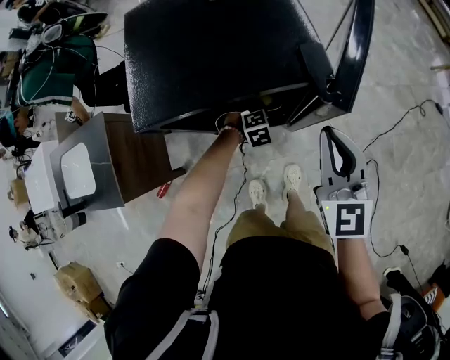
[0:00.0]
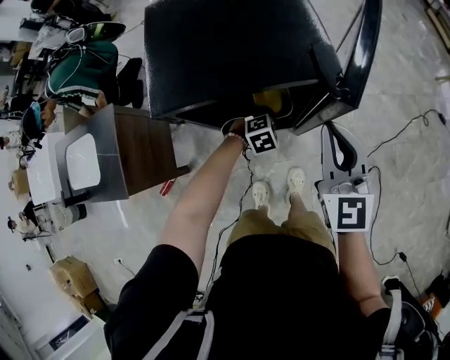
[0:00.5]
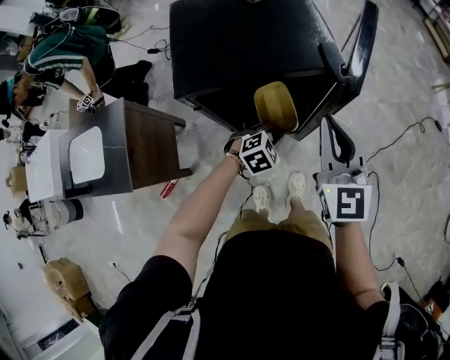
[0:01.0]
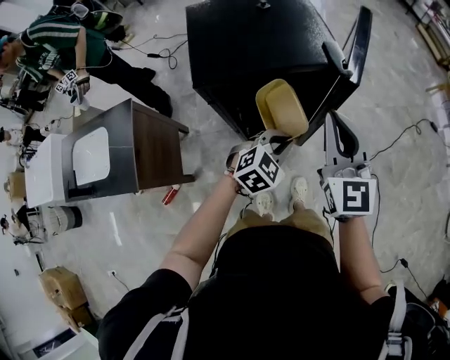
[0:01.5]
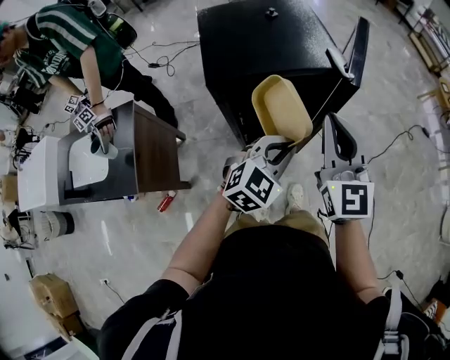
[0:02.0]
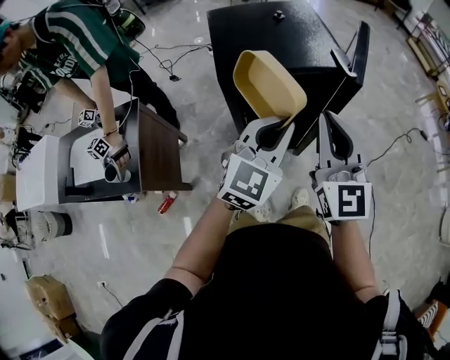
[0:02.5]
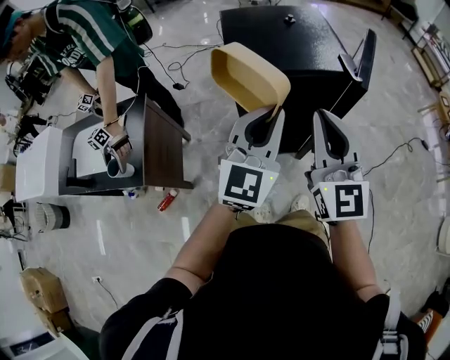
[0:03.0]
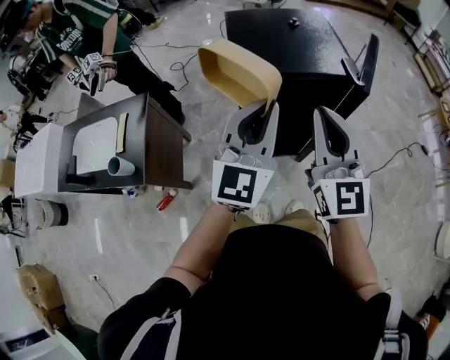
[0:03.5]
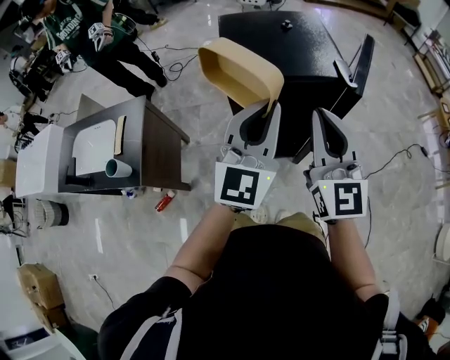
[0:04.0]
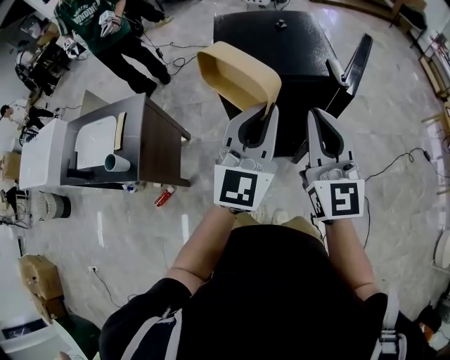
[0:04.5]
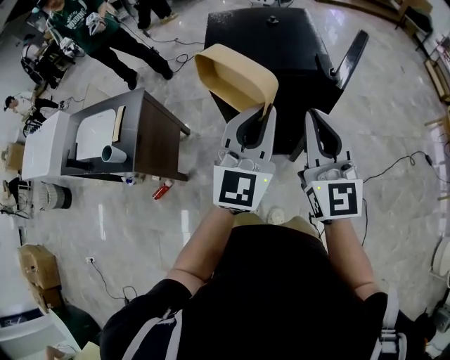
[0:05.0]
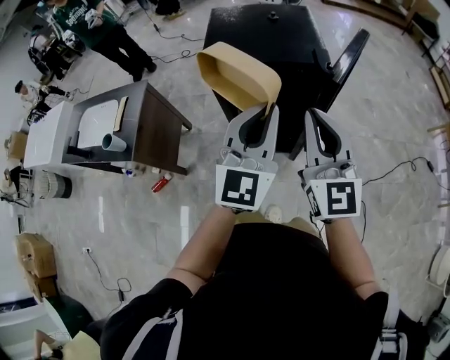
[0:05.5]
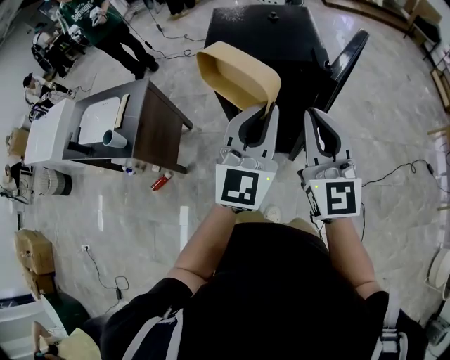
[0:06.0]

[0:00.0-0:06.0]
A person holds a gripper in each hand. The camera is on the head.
0:00.0 to 0:02.0: The right gripper shifts roughly 20 cm backward, upward and to the left. Meanwhile the left gripper goes about 40 cm upward and backward, and tips its fingers upward by approximately 40 degrees.
0:02.0 to 0:04.0: The right gripper goes some 10 cm upward and to the left. The left gripper goes some 20 cm upward and to the left, and tips its fingers upward by approximately 40 degrees.
0:04.0 to 0:06.0: Both grippers move to the right and backward, some 15 cm.

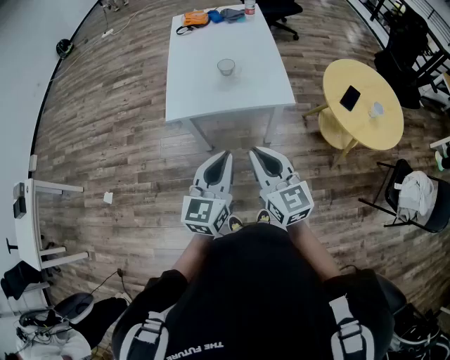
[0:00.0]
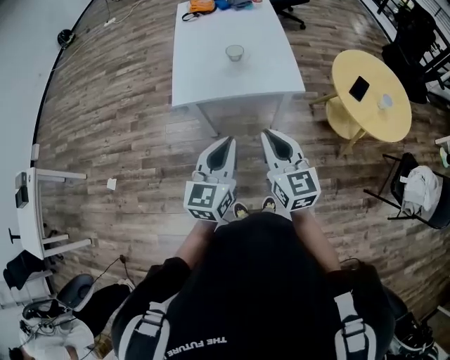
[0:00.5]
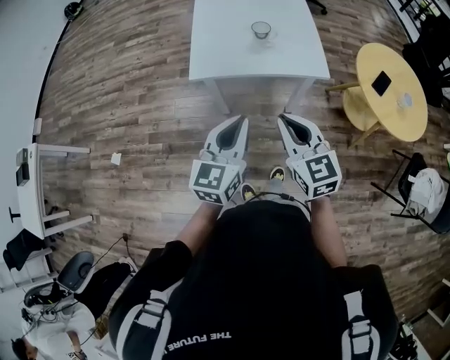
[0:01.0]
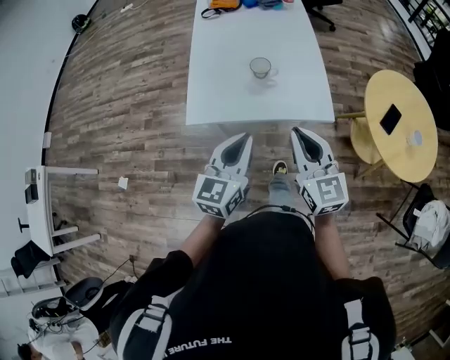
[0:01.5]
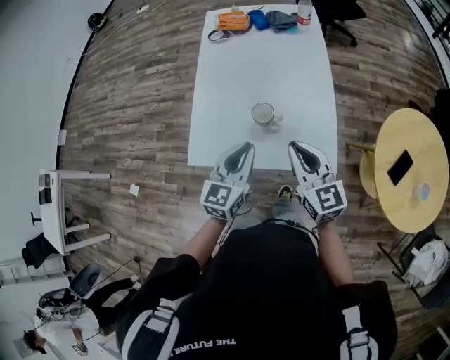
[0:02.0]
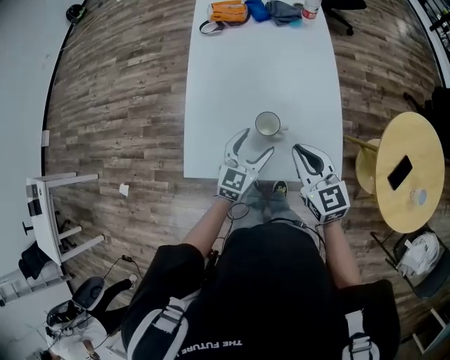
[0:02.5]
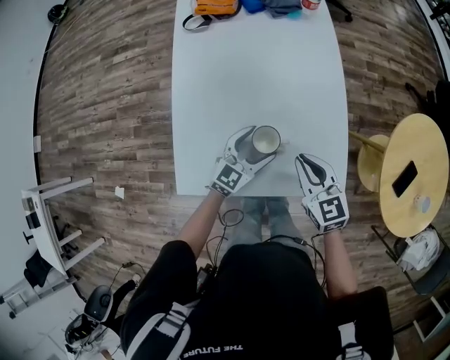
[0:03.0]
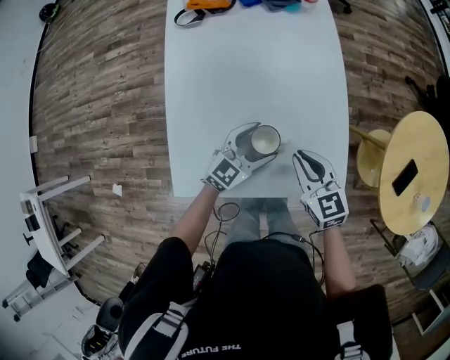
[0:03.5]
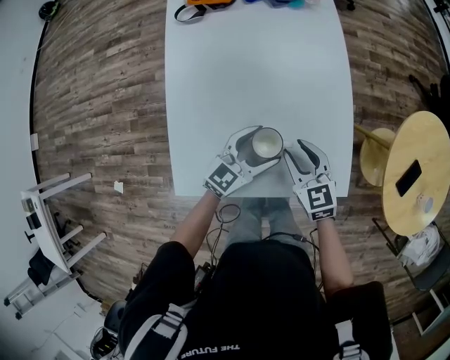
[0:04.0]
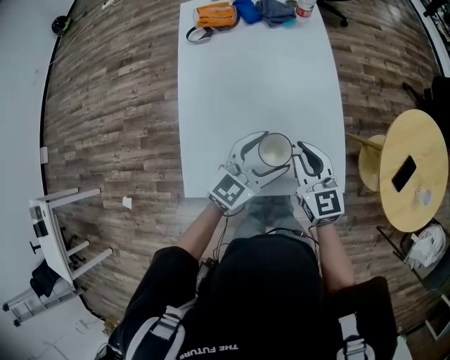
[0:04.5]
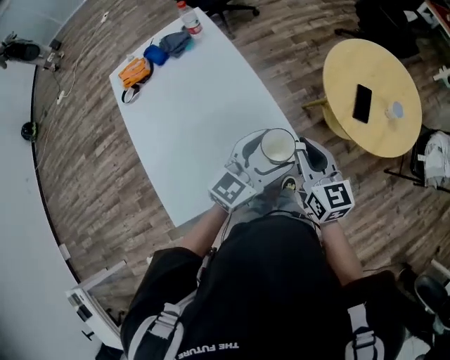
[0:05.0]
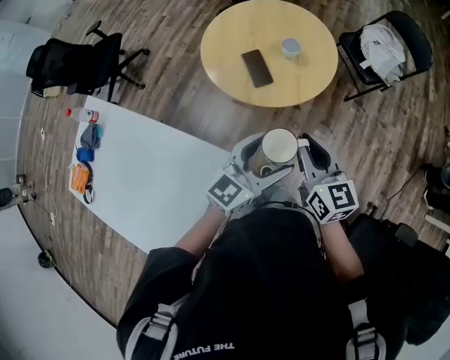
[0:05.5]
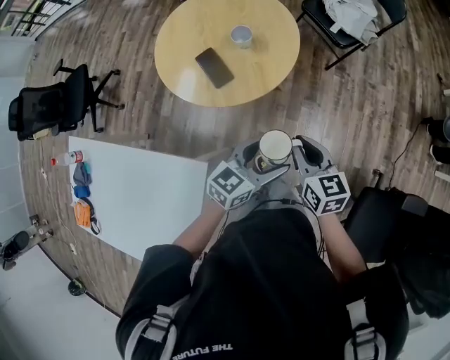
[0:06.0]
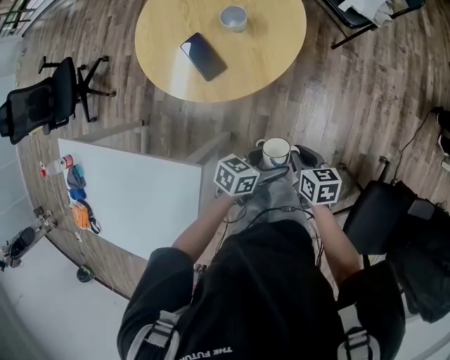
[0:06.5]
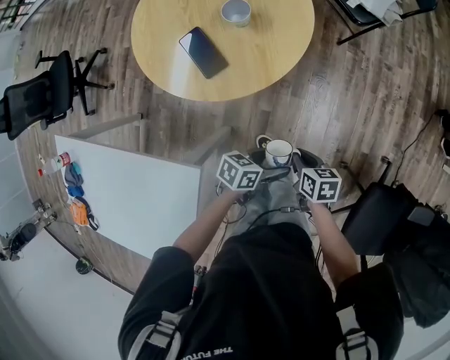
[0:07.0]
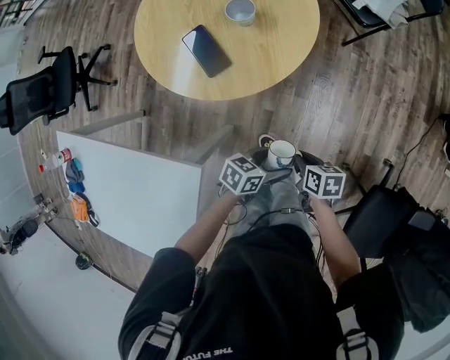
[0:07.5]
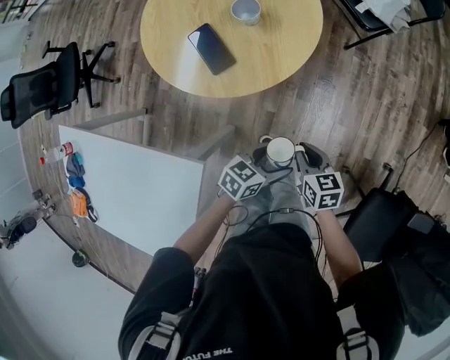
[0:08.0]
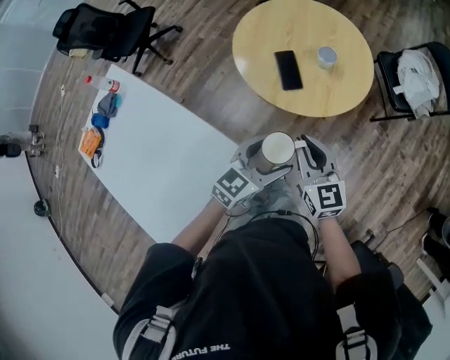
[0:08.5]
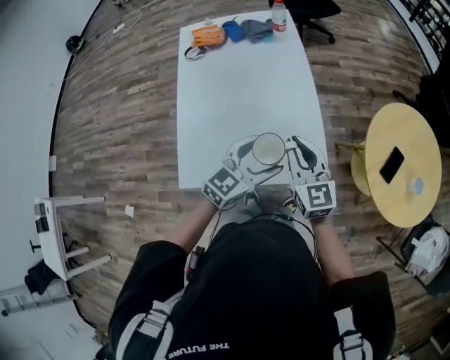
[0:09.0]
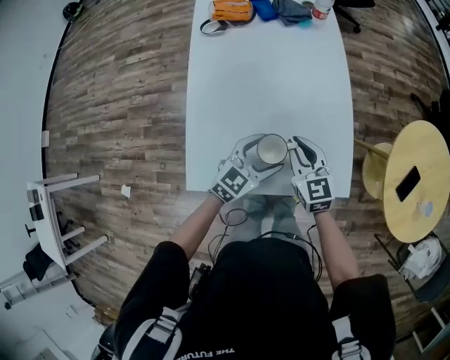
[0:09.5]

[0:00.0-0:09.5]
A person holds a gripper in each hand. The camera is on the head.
0:00.0 to 0:02.0: Both grippers move forward, approximately 35 cm.
0:02.0 to 0:04.0: The grippers both shift downward and forward by approximately 25 cm. The left gripper changes its angle by some 30 degrees, and opens up; the right gripper changes its angle by about 20 degrees, and opens its fingers.
0:04.0 to 0:05.5: The two grippers travel together, about 50 cm. The right gripper changes its angle by about 80 degrees, and closes; the left gripper turns by roughly 60 degrees.
0:05.5 to 0:07.5: Both grippers move downward, about 30 cm. The right gripper points its fingers approximately 40 degrees further downward. Meanwhile the left gripper swivels roughly 60 degrees.
0:07.5 to 0:09.5: Both grippers are carried some 60 cm. The left gripper changes its angle by some 90 degrees. The right gripper rolls counterclockwise, seen from behind, by approximately 90 degrees.

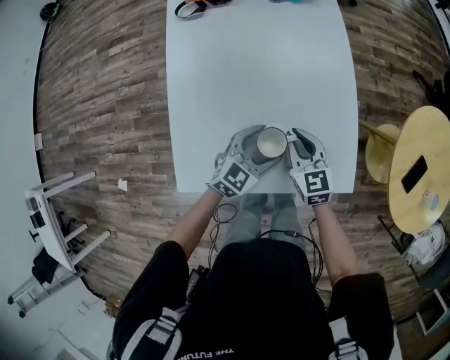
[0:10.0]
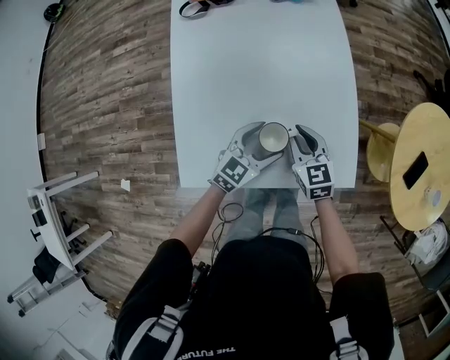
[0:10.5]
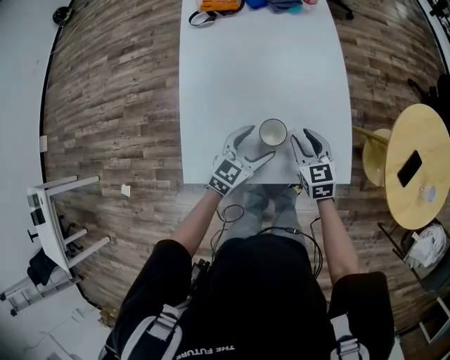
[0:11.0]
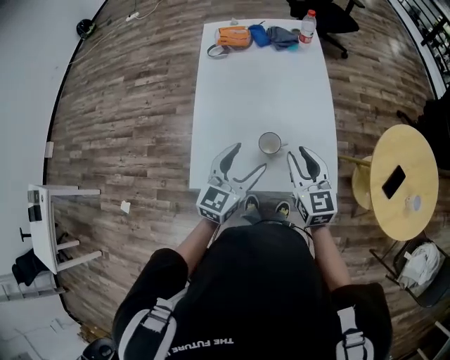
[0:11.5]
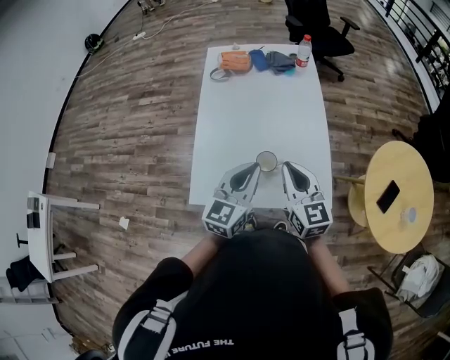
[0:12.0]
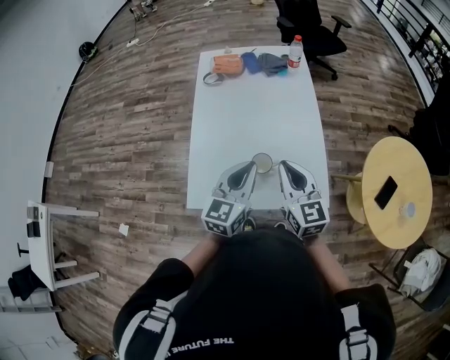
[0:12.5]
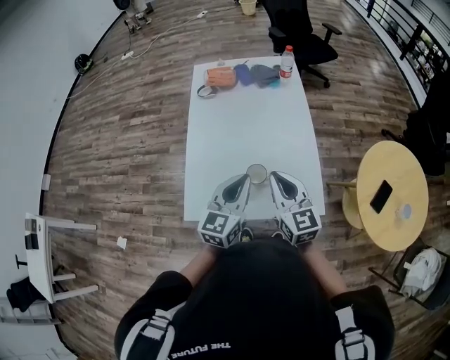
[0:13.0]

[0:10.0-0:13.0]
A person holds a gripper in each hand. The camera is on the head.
0:10.0 to 0:11.5: Both grippers travel together upward and backward, roughly 20 cm. The right gripper opens its fingers, while the left gripper rotates approximately 30 degrees.
0:11.5 to 0:13.0: The right gripper shifts approximately 5 cm upward, and closes its fingers, while the left gripper shifts by about 5 cm, and closes up.

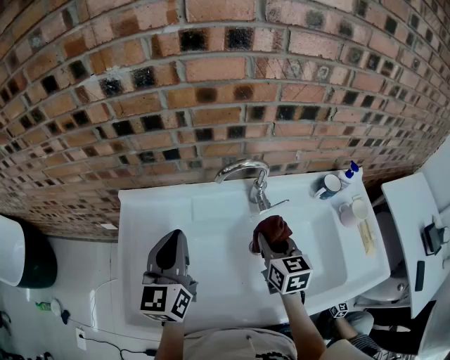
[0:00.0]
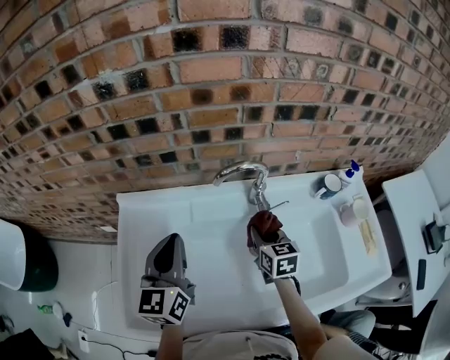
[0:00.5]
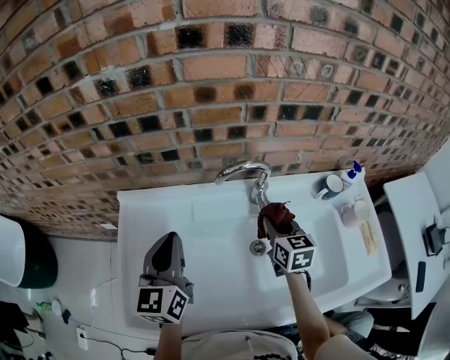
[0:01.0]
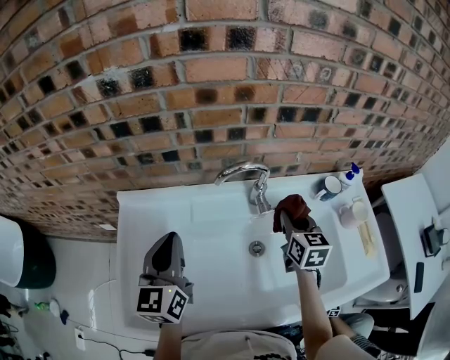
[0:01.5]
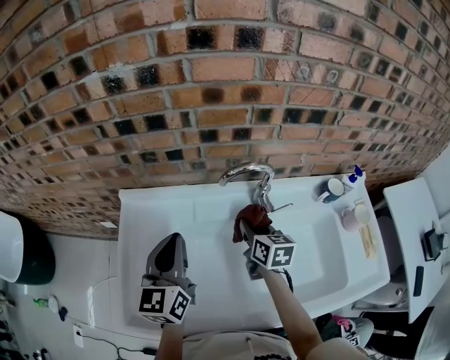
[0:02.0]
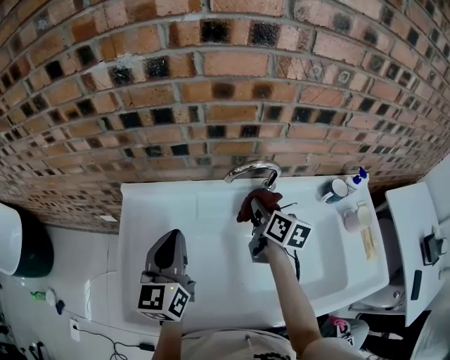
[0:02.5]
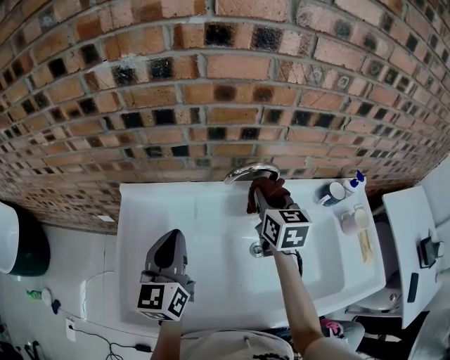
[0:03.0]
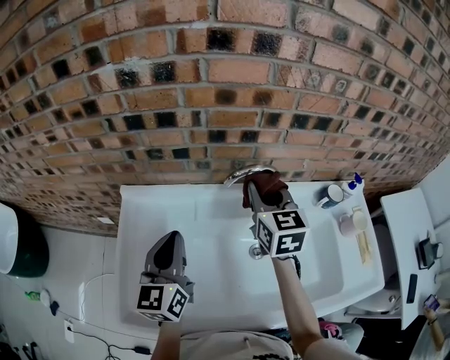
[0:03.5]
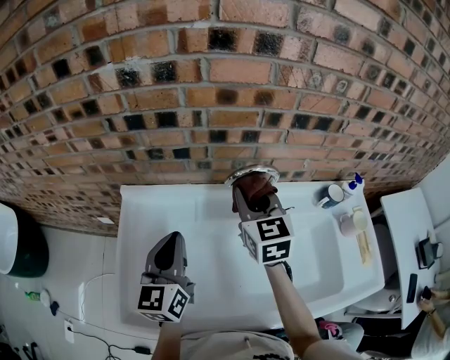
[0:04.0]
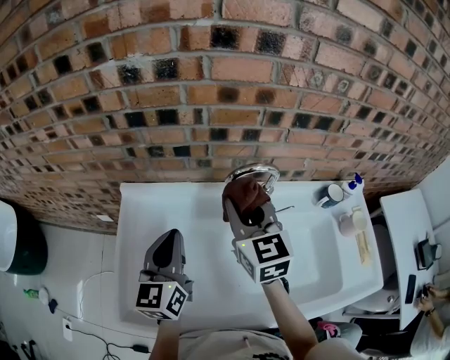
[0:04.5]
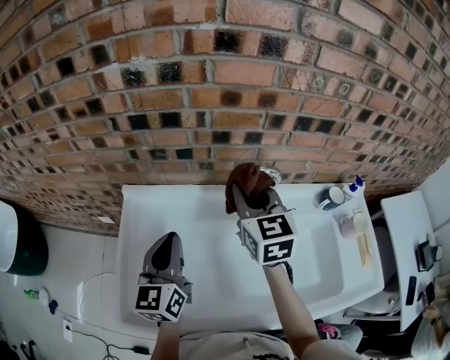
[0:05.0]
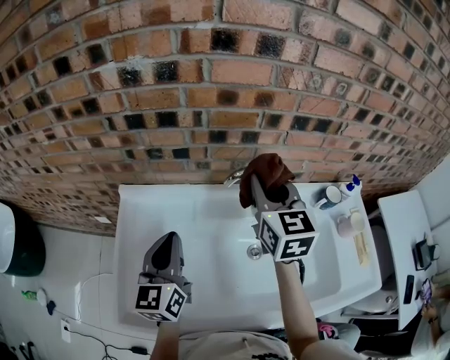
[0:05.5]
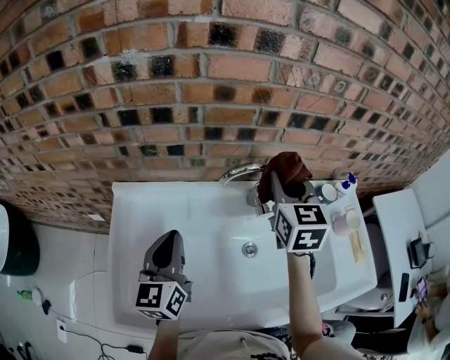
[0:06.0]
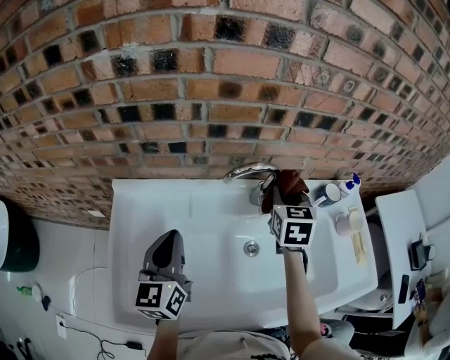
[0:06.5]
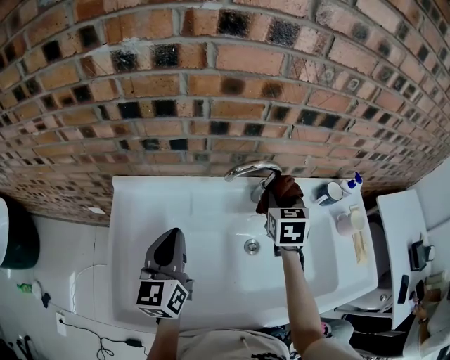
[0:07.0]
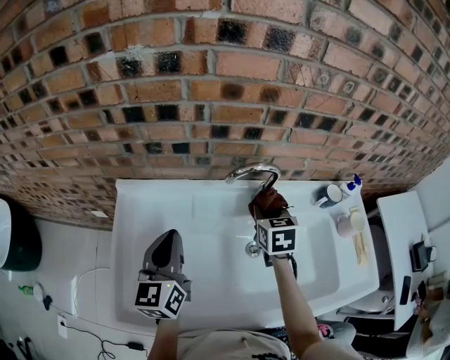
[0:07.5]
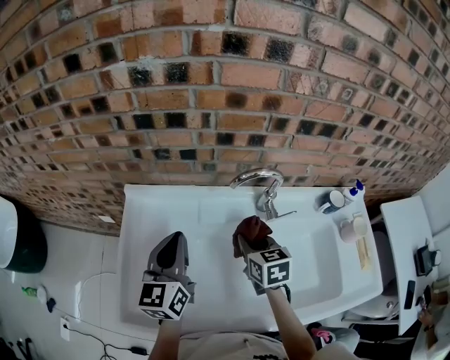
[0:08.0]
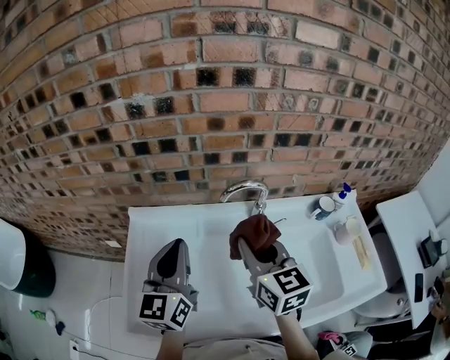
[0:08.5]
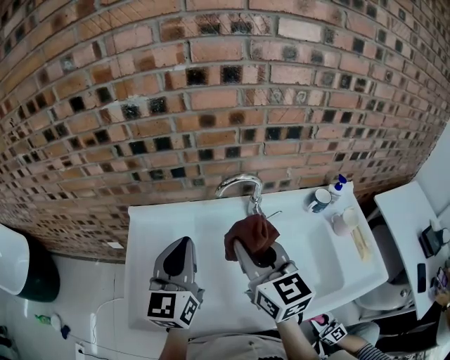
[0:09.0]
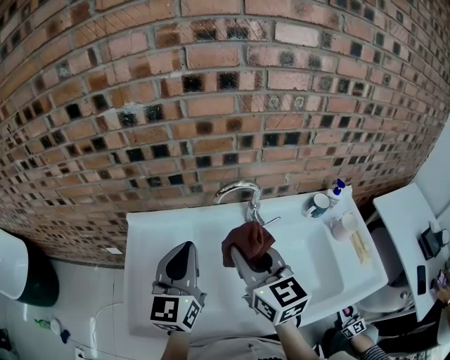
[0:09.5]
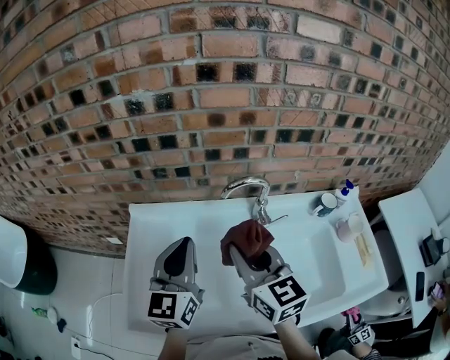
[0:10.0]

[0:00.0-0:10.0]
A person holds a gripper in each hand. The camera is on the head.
0:00.0 to 0:02.0: The right gripper goes approximately 5 cm forward.
0:02.0 to 0:04.0: The right gripper travels upward by roughly 15 cm, and changes its angle by some 30 degrees.
0:04.0 to 0:06.0: The right gripper shifts some 10 cm to the right.
0:06.0 to 0:08.0: The right gripper goes roughly 20 cm downward, backward and to the left, and turns by roughly 30 degrees.
0:08.0 to 0:10.0: The right gripper is displaced upward by some 15 cm, and turns by some 30 degrees; the left gripper is displaced upward by about 5 cm.
